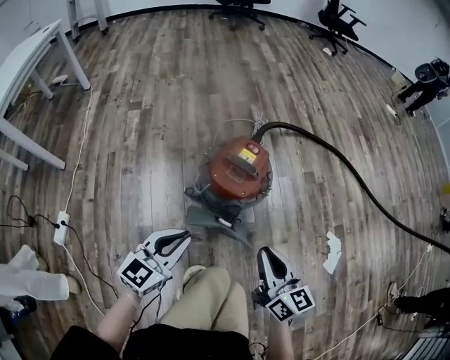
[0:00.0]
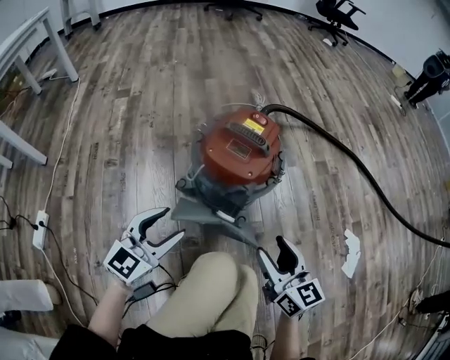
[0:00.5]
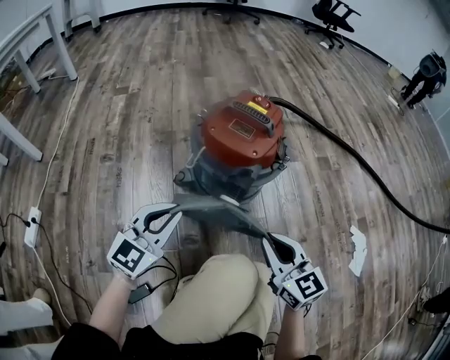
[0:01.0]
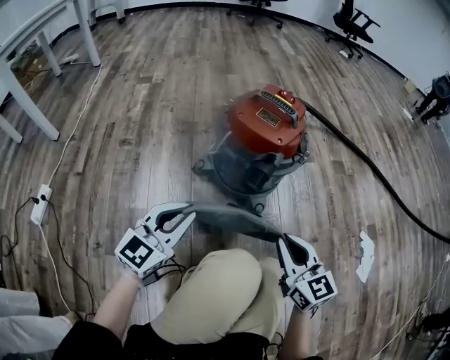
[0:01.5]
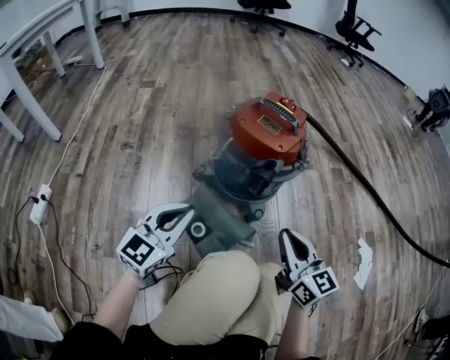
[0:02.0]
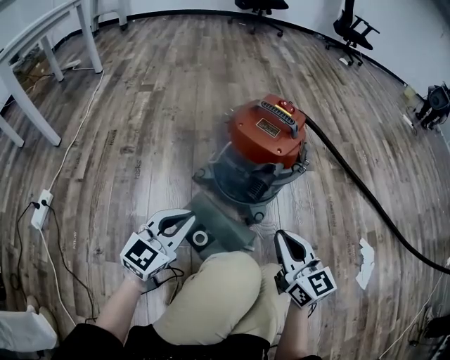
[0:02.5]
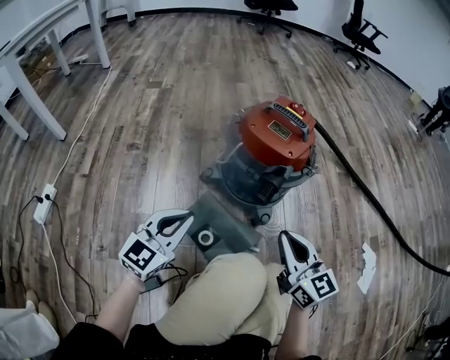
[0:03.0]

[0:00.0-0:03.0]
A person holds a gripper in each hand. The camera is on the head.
0:00.0 to 0:01.5: The two grippers go approximately 25 cm downward. The right gripper rotates roughly 20 degrees, and opens, then closes once more; the left gripper opens, then closes once more.
0:01.5 to 0:03.0: The grippers move only a little.

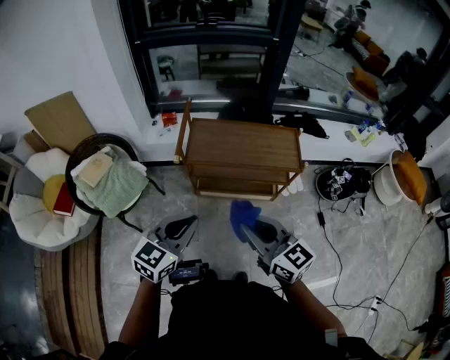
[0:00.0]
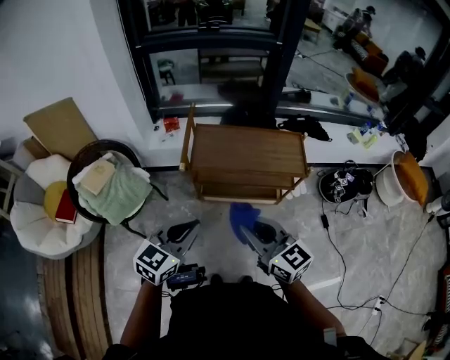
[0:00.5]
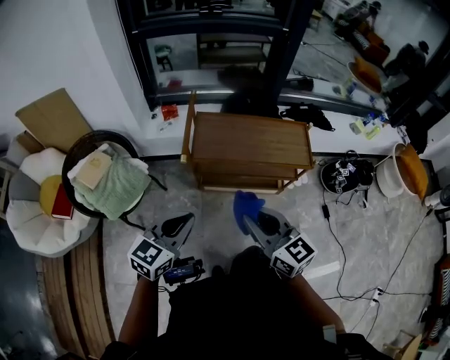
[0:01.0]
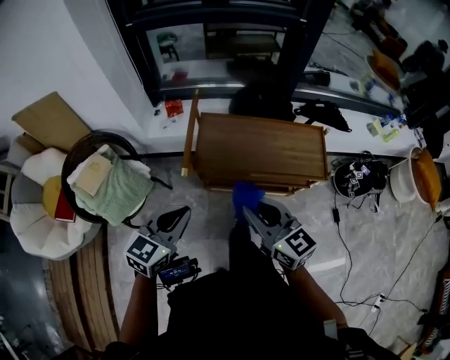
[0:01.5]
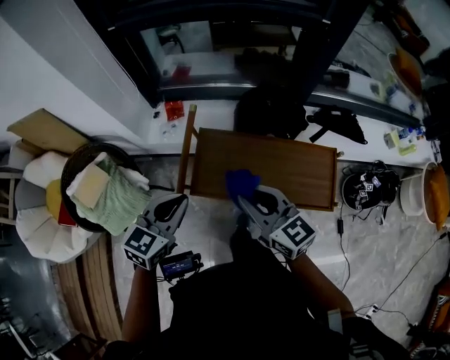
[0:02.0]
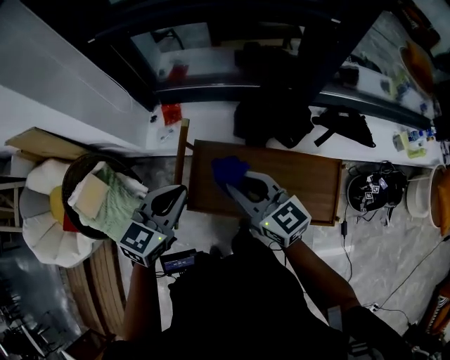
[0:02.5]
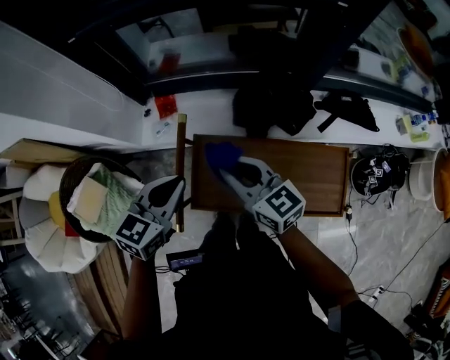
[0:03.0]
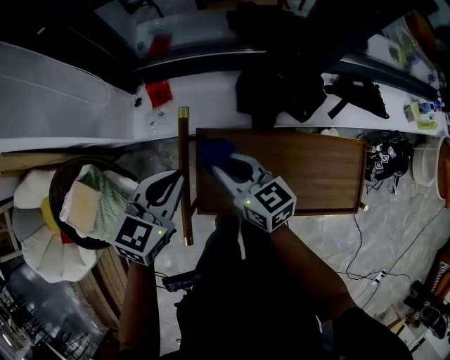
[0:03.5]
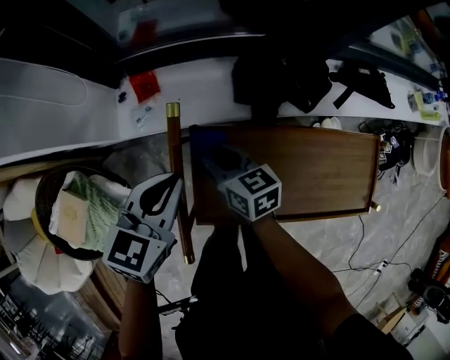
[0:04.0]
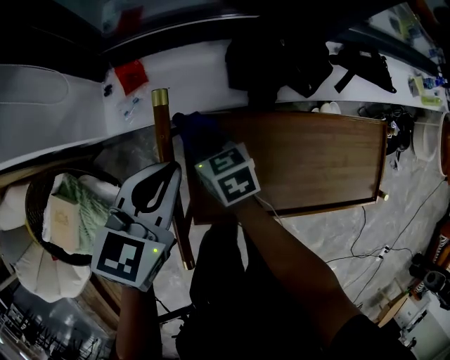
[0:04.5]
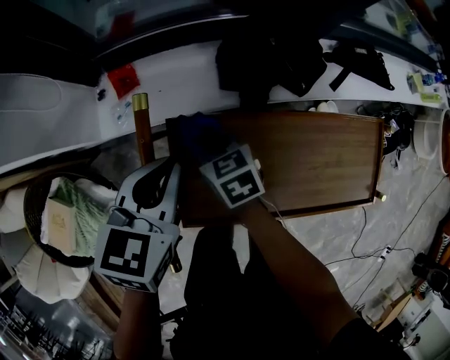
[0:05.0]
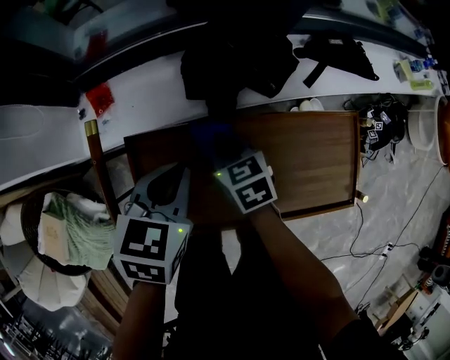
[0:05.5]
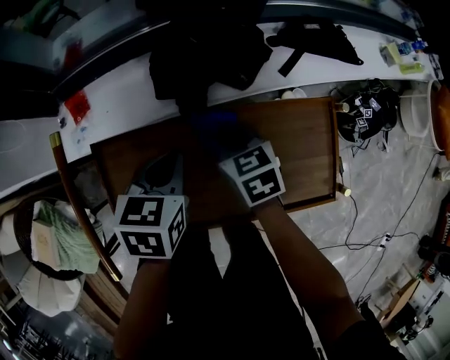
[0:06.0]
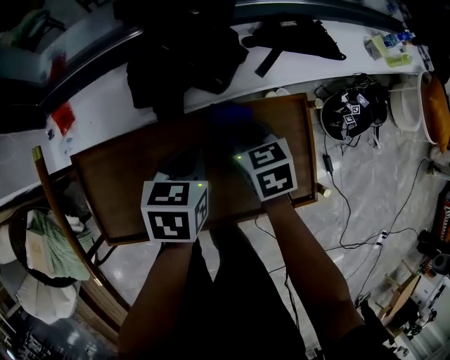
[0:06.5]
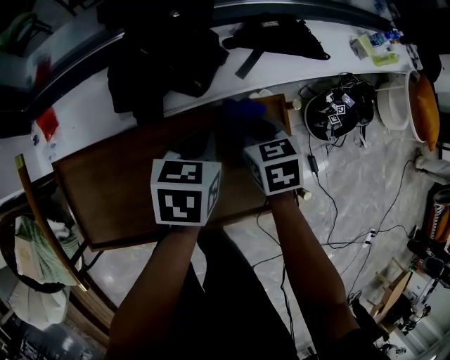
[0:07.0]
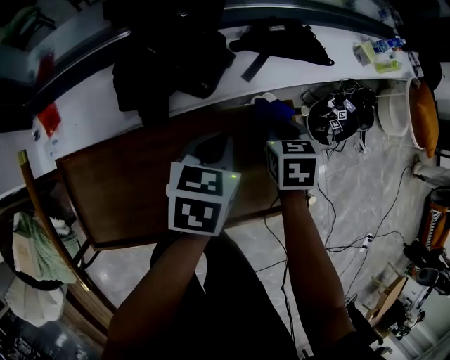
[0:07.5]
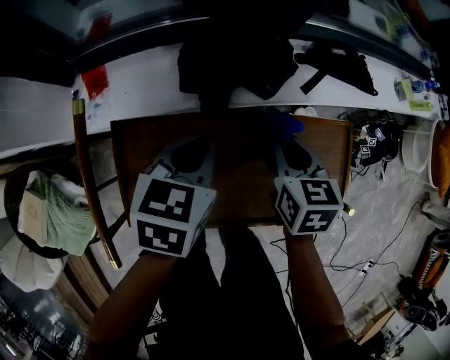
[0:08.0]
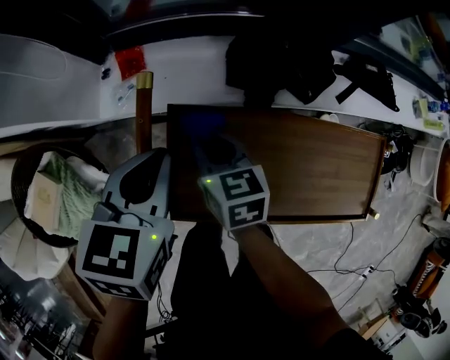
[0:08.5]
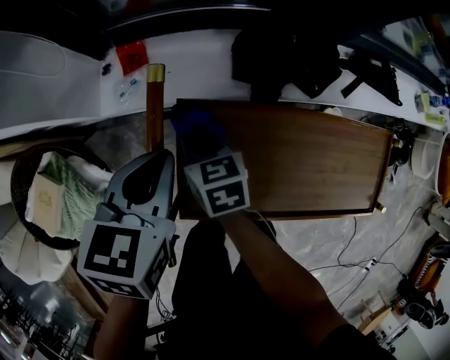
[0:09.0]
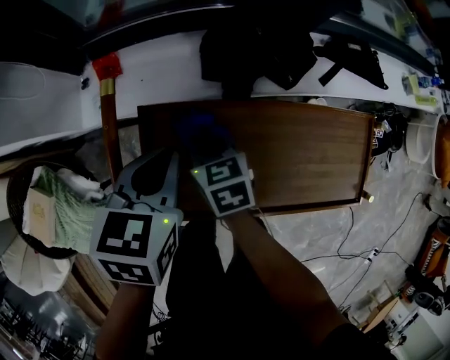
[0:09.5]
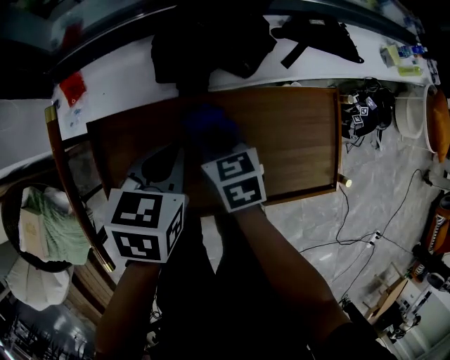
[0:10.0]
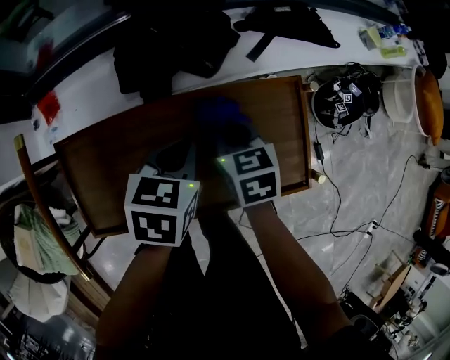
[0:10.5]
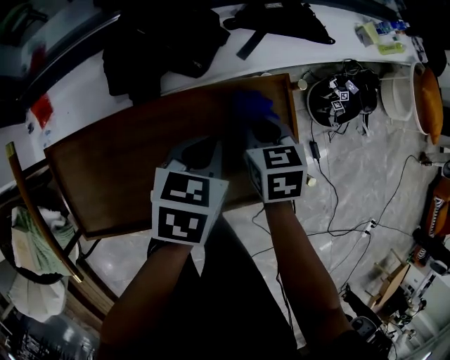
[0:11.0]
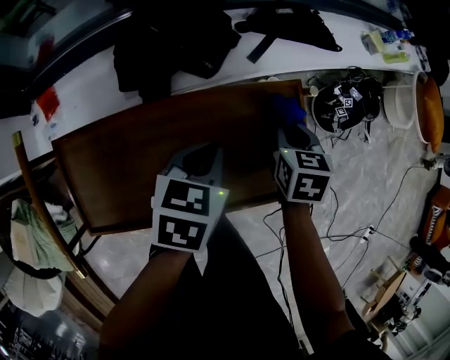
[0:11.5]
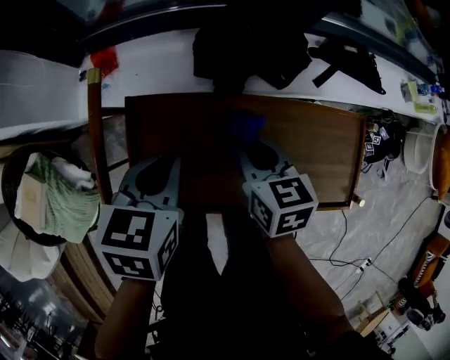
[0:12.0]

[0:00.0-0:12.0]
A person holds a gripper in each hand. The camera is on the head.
0:00.0 to 0:02.0: Both grippers move forward, approximately 35 cm.
0:02.0 to 0:04.0: The right gripper is displaced downward and forward by approximately 35 cm, and swivels approximately 30 degrees, while the left gripper travels forward and downward by about 25 cm.
0:04.0 to 0:06.0: The left gripper moves to the right and downward, roughly 25 cm; the right gripper travels to the right by about 30 cm, and changes its angle by roughly 20 degrees.
0:06.0 to 0:08.0: The right gripper travels upward by about 5 cm.
0:08.0 to 0:10.0: The right gripper travels downward by about 5 cm, and travels to the left and back again, approximately 35 cm each way. The left gripper travels to the left and back again, about 25 cm each way.
0:10.0 to 0:12.0: The right gripper moves upward, approximately 5 cm.

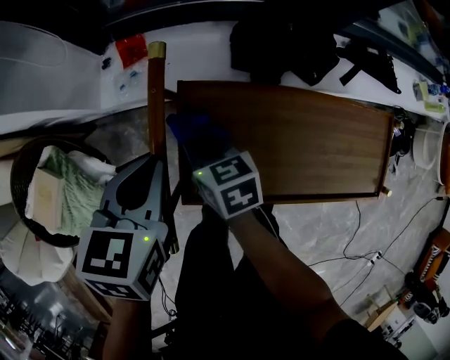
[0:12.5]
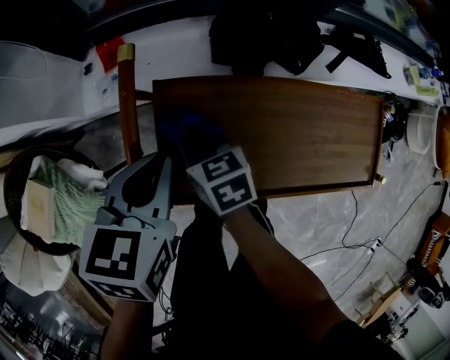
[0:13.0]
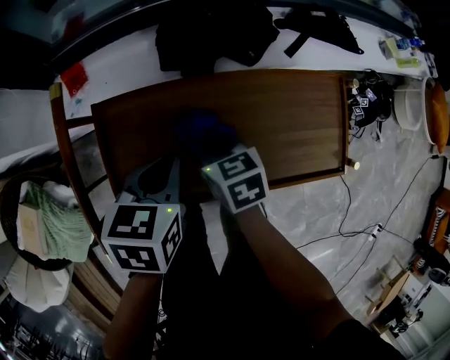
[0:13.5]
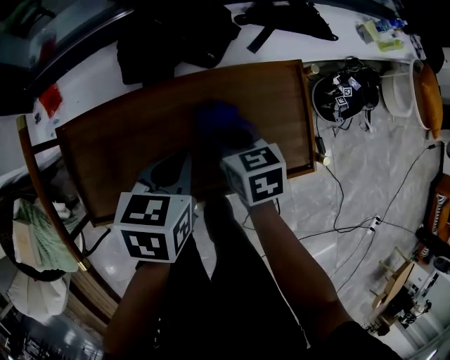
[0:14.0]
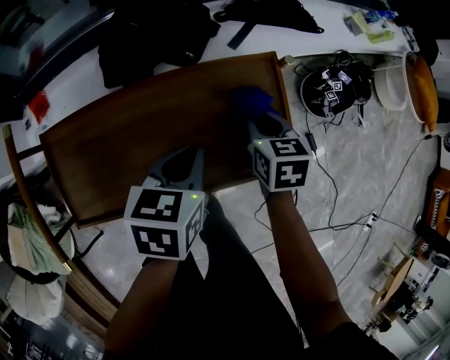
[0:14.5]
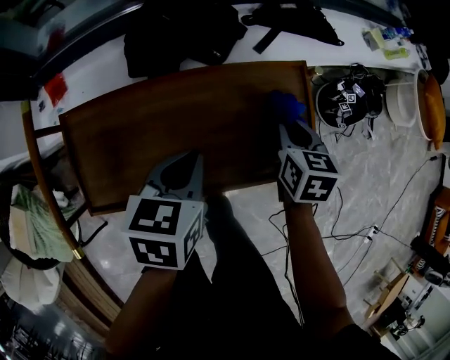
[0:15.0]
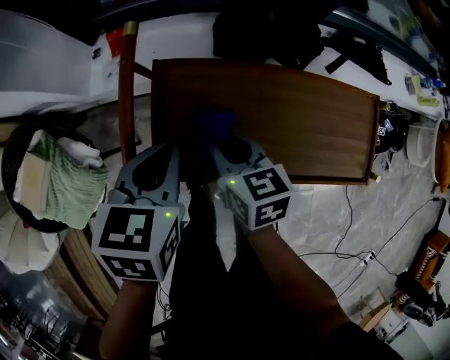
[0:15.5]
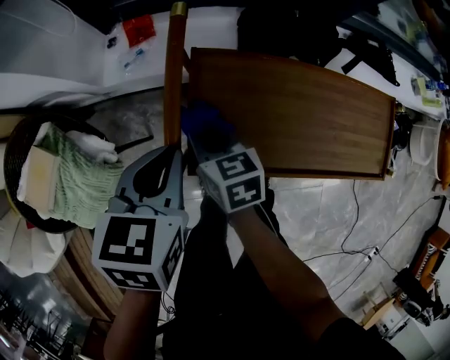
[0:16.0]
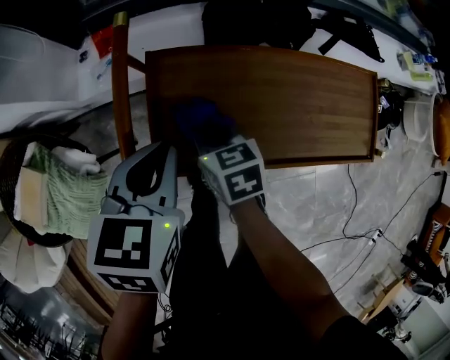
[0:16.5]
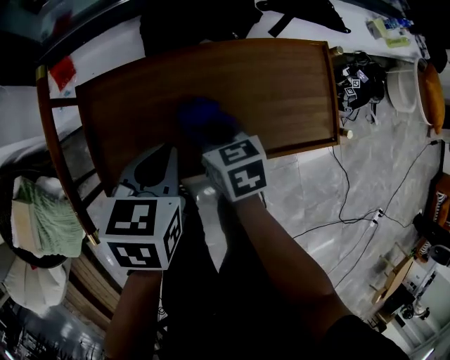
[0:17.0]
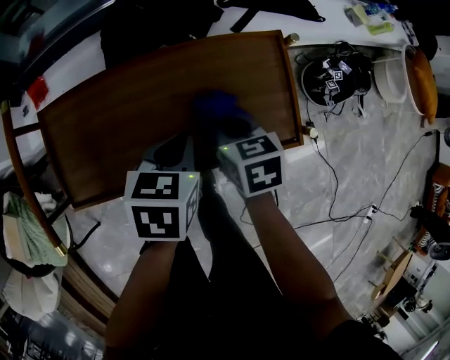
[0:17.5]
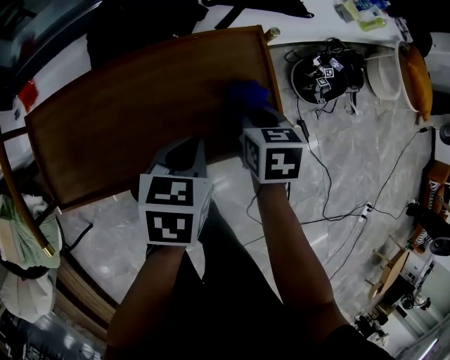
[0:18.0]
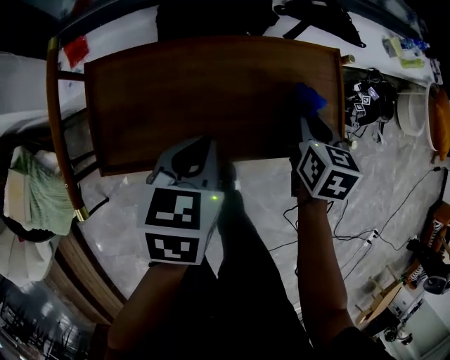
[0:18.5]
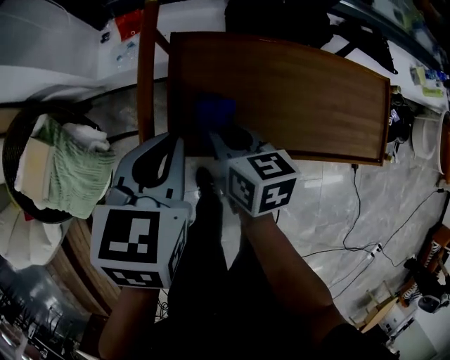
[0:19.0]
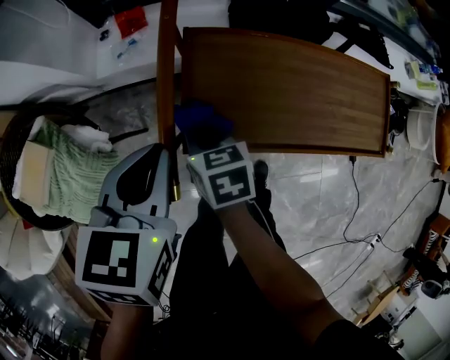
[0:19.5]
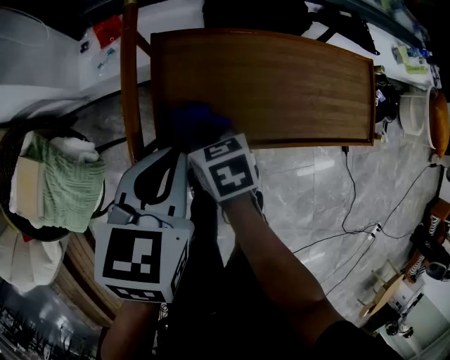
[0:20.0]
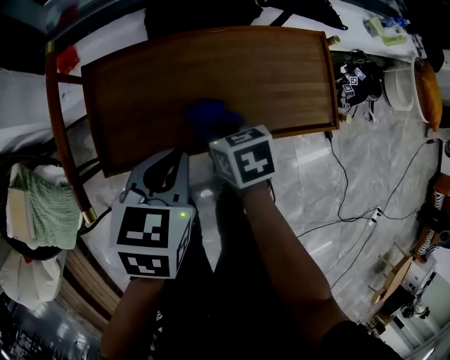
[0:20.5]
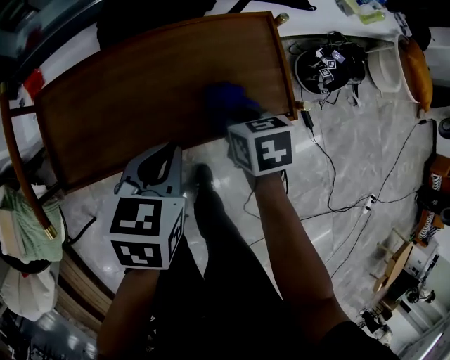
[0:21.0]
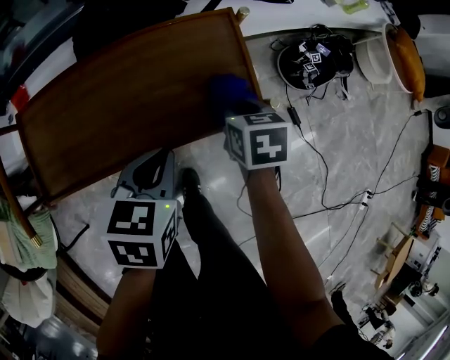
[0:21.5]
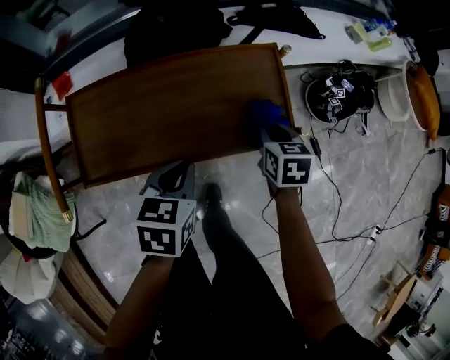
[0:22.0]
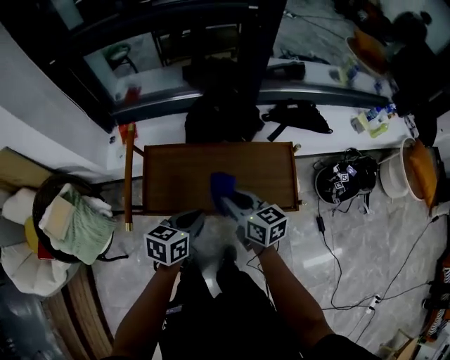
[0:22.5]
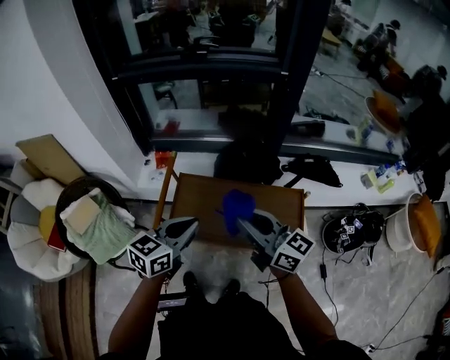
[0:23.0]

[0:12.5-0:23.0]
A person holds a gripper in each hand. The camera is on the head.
0:12.5 to 0:14.5: The pair of grippers is taken about 50 cm. The right gripper swivels approximately 40 degrees. The left gripper swivels roughly 20 degrees.
0:14.5 to 0:16.5: The left gripper moves roughly 35 cm, while the right gripper moves approximately 50 cm, and changes its angle by some 30 degrees.
0:16.5 to 0:19.0: The left gripper travels downward and back again, roughly 10 cm each way; the right gripper travels upward by approximately 5 cm.
0:19.0 to 0:21.0: The grippers both shift to the right by some 35 cm. The right gripper turns by approximately 30 degrees.
0:21.0 to 0:23.0: The two grippers go about 35 cm upward. The left gripper swivels approximately 30 degrees. Meanwhile the right gripper tilts its fingers about 60 degrees upward.

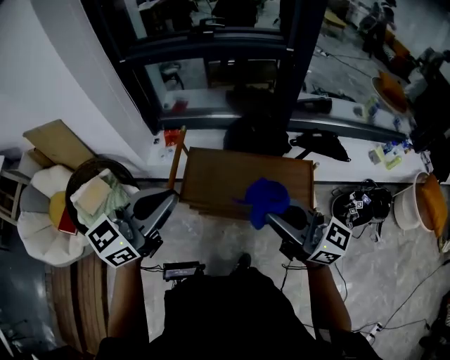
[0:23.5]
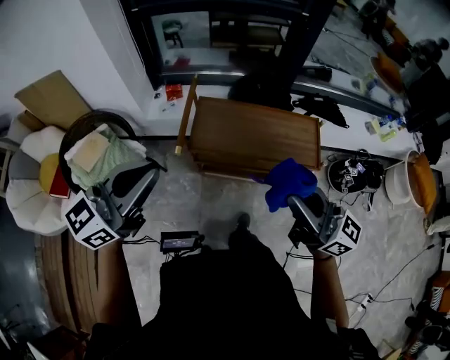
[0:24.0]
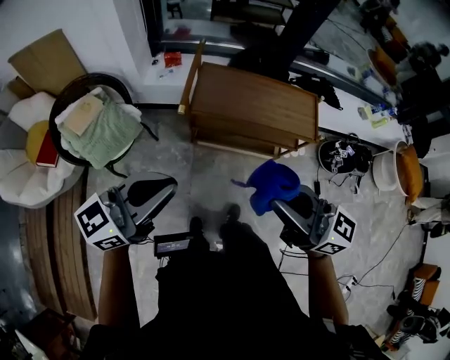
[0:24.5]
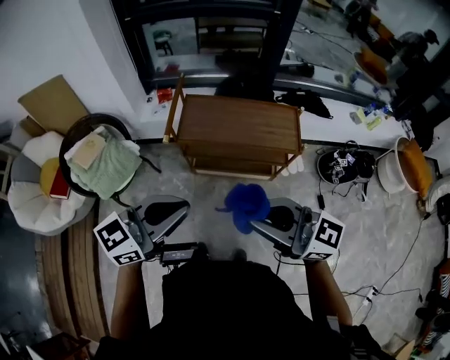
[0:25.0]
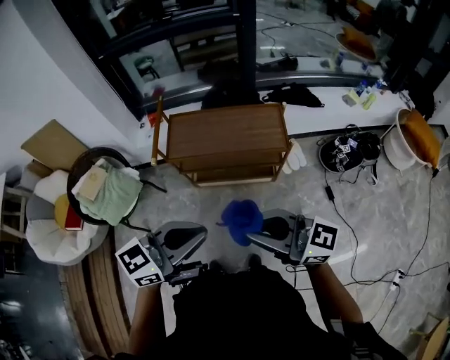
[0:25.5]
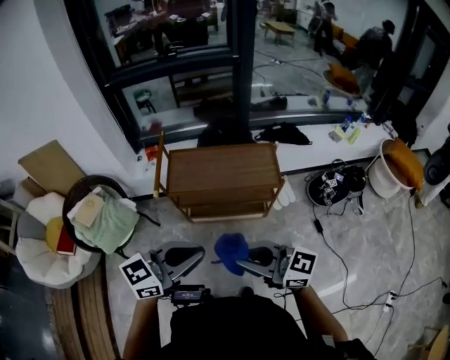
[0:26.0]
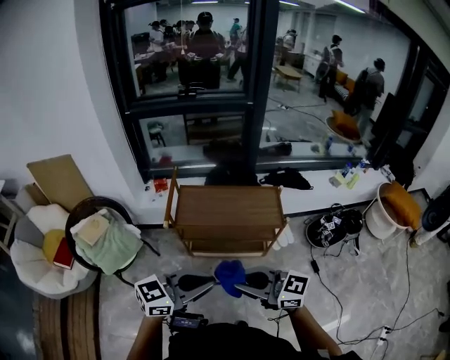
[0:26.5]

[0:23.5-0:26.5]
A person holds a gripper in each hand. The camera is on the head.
0:23.5 to 0:25.0: The left gripper ends up about 30 cm from where it was; the right gripper ends up some 30 cm from where it was.
0:25.0 to 0:26.5: The left gripper shifts by roughly 10 cm.
